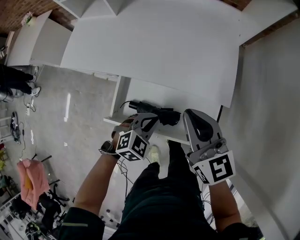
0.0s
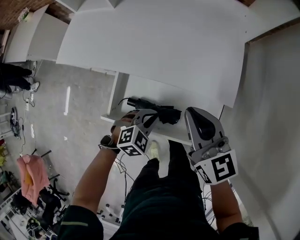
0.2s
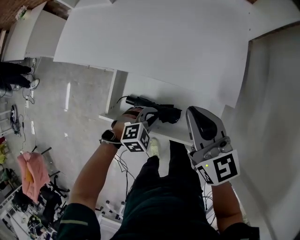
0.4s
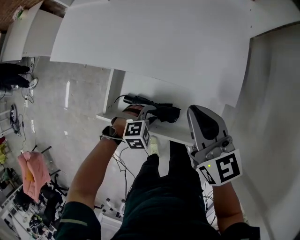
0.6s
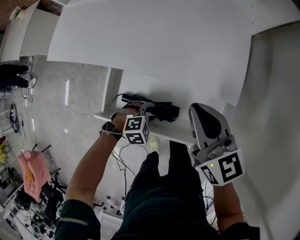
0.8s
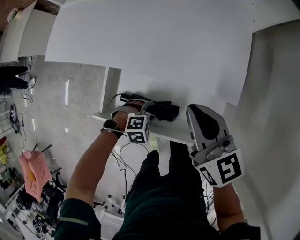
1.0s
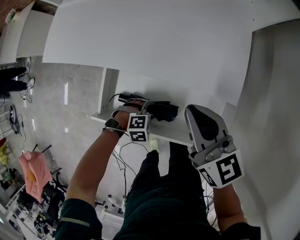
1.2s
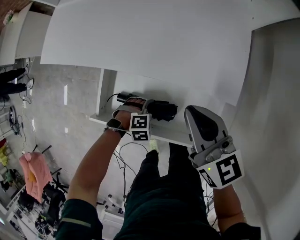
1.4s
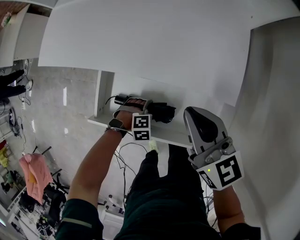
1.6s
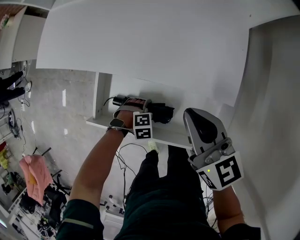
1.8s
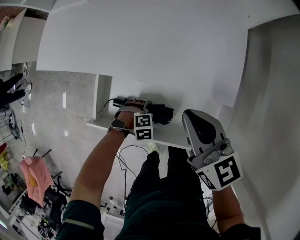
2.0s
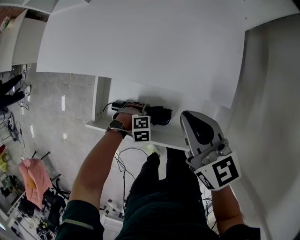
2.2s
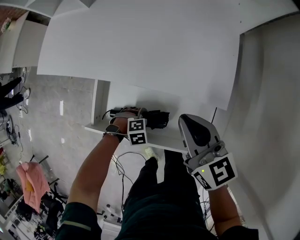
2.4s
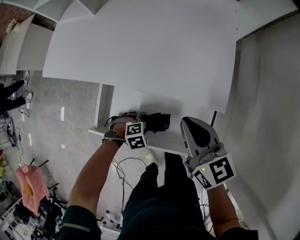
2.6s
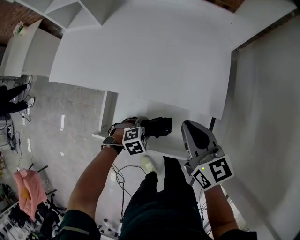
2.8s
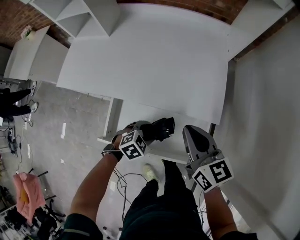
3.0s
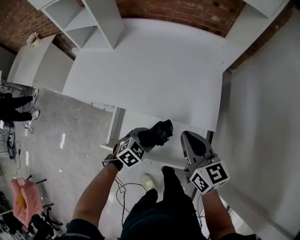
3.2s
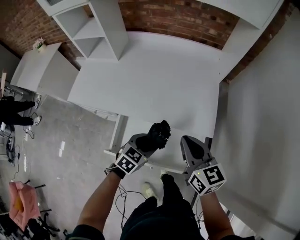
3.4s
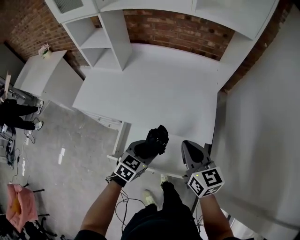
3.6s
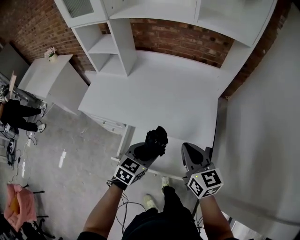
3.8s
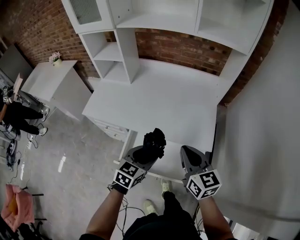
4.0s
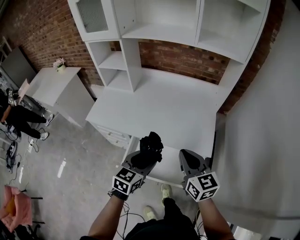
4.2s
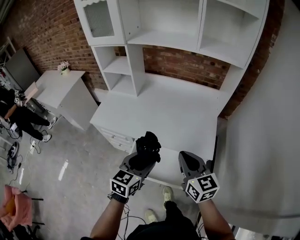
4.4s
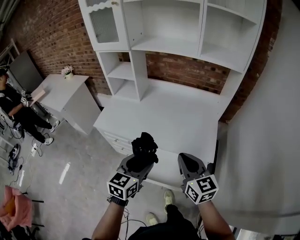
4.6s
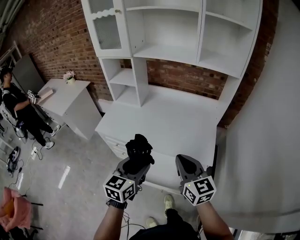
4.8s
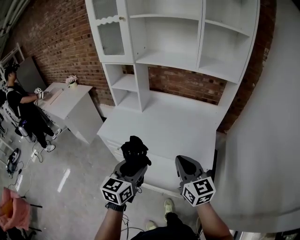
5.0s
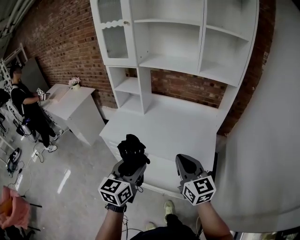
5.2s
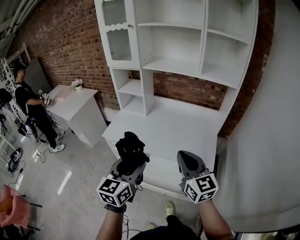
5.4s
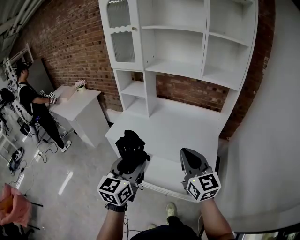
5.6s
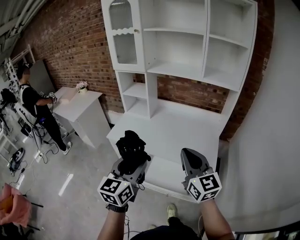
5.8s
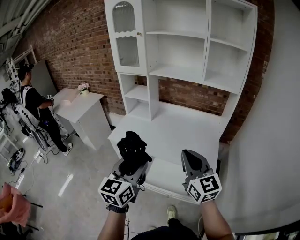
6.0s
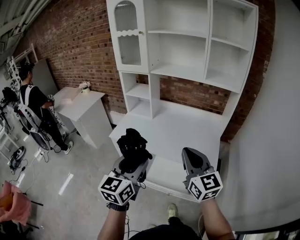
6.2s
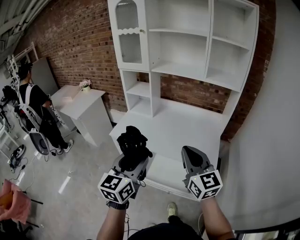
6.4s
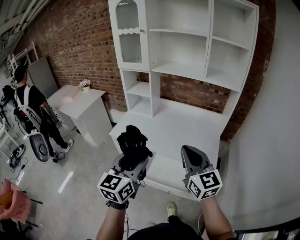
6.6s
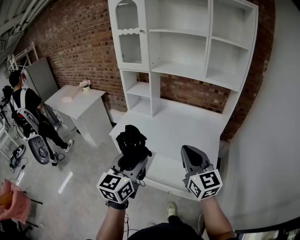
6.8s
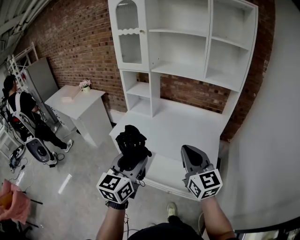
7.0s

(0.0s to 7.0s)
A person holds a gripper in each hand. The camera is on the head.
0.0s - 1.4s: The right gripper heads downward, covering roughly 10 cm, while the left gripper moves downward, roughly 20 cm, turns by about 40 degrees, and opens.
1.4s - 2.8s: The left gripper moves upward, some 5 cm.
2.8s - 4.2s: The left gripper heads upward, covering roughly 30 cm, and tilts its fingers about 40 degrees upward; the right gripper travels upward and backward by some 15 cm.
4.2s - 5.6s: The two grippers go some 20 cm upward, to the left and backward. The left gripper swivels roughly 30 degrees.
5.6s - 7.0s: The grippers move only a little.

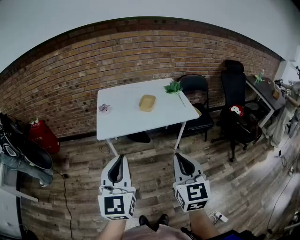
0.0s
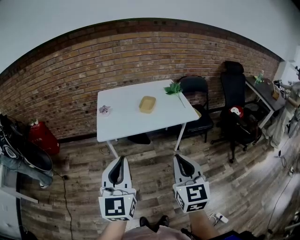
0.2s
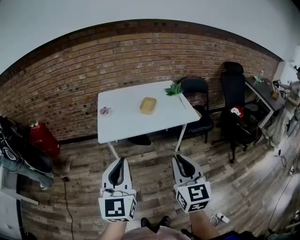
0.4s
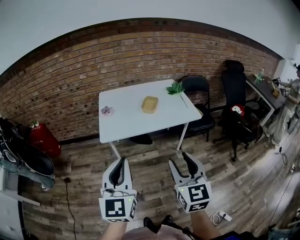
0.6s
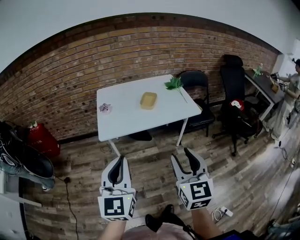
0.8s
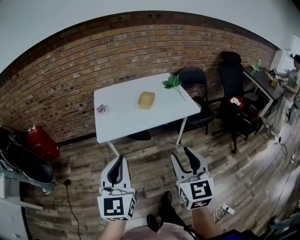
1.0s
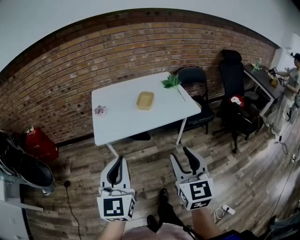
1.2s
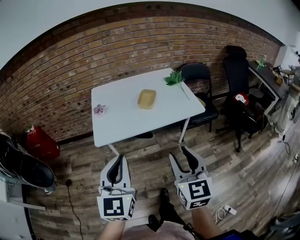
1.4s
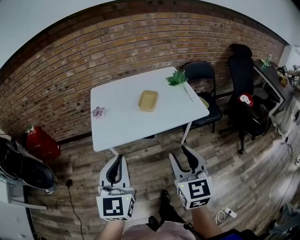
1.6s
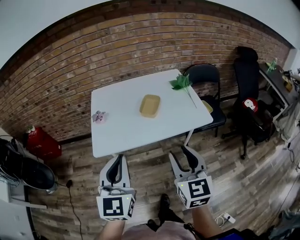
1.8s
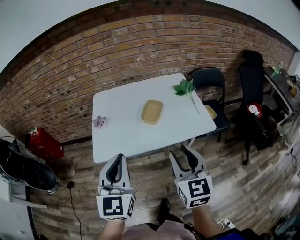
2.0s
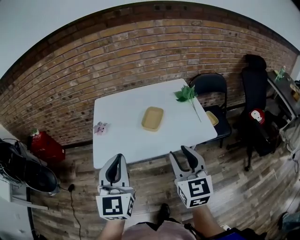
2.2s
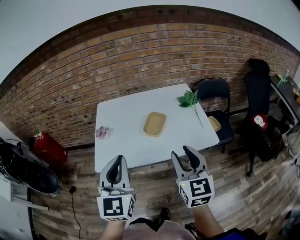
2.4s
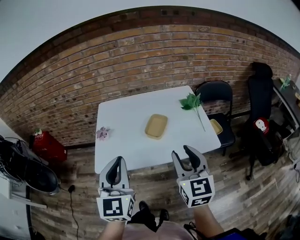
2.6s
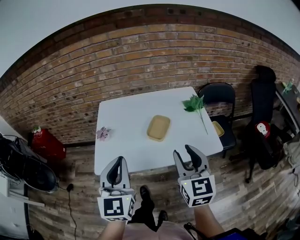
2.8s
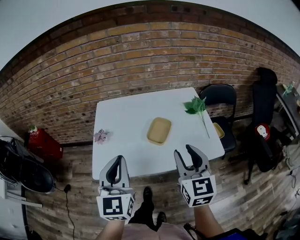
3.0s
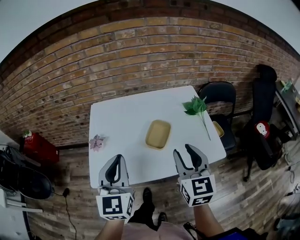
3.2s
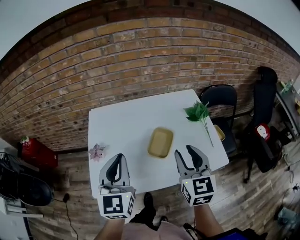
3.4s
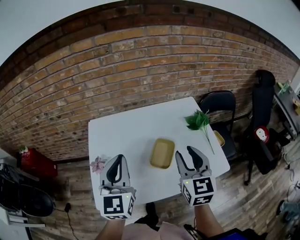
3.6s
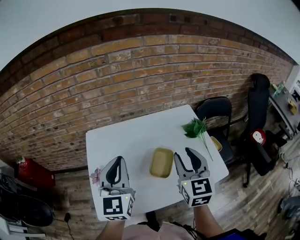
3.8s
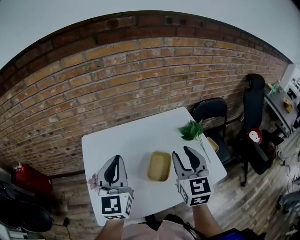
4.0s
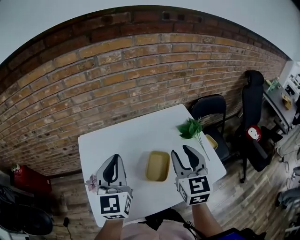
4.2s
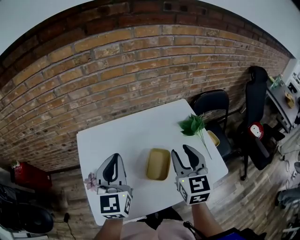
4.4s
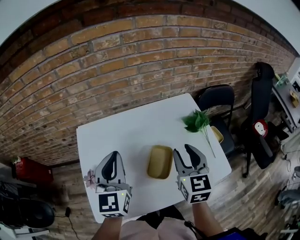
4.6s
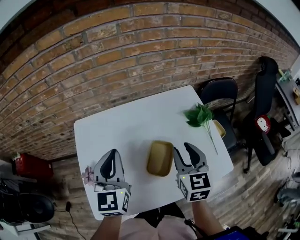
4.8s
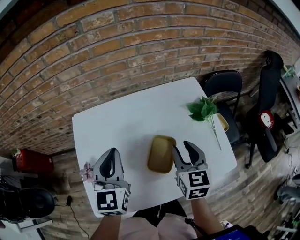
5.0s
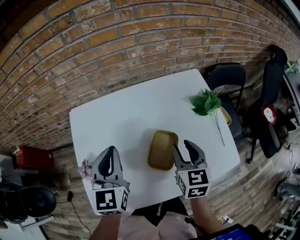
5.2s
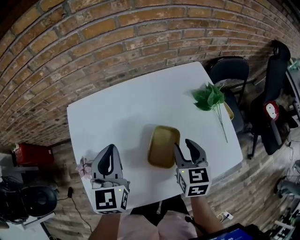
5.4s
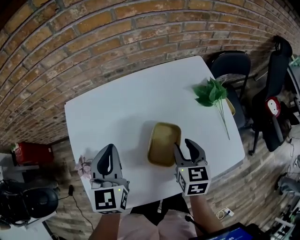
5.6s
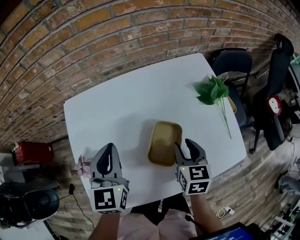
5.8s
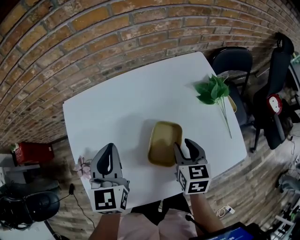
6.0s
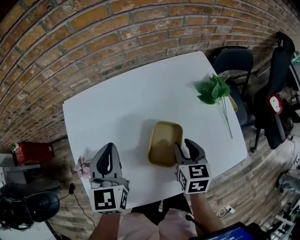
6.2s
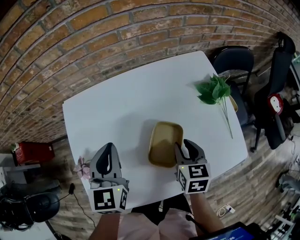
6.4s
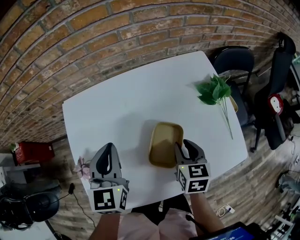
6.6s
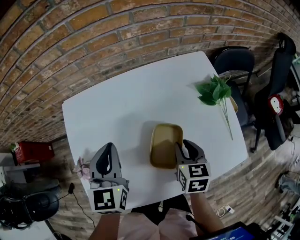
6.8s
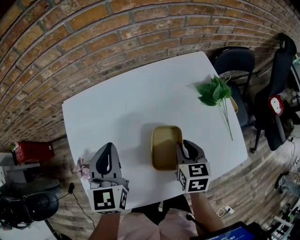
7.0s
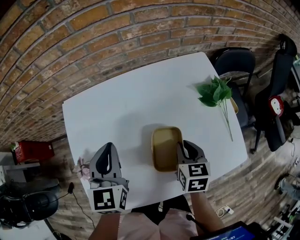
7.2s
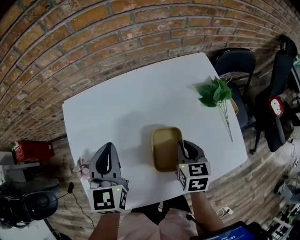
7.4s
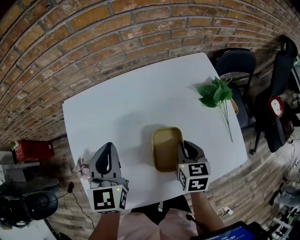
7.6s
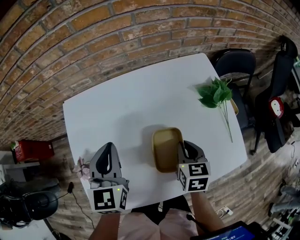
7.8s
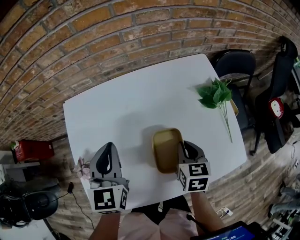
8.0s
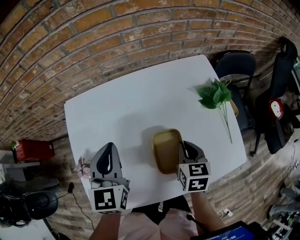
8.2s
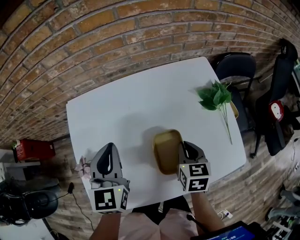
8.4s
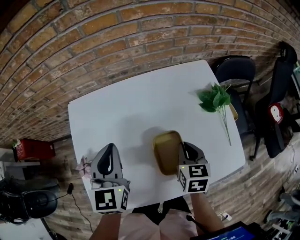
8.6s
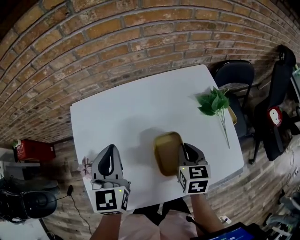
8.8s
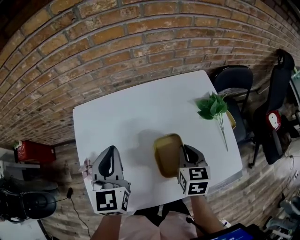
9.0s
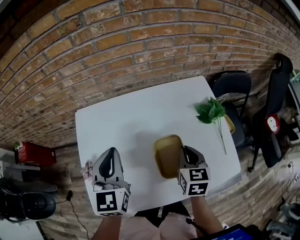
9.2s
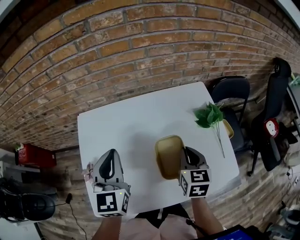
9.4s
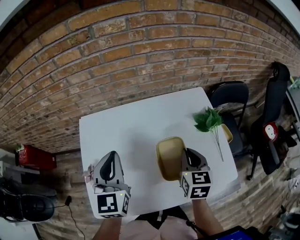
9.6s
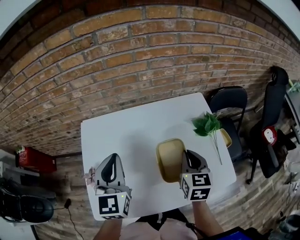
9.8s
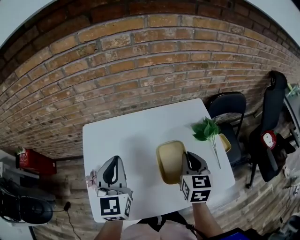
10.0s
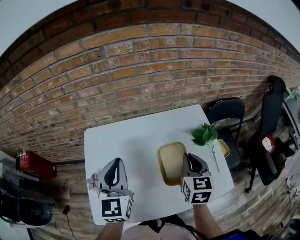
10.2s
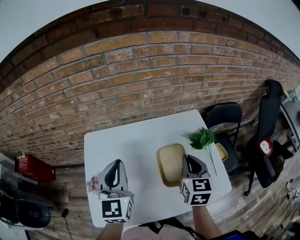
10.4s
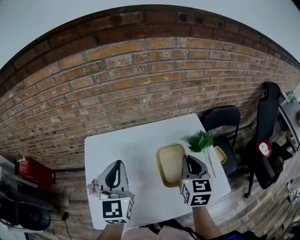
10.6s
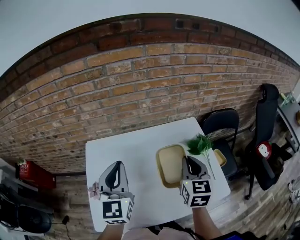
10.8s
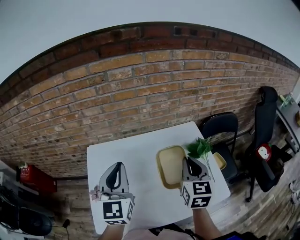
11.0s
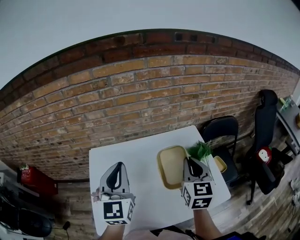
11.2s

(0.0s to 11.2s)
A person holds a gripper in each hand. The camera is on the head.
0.0s - 1.6s: The grippers both shift forward by some 15 cm. The right gripper opens.
1.6s - 3.2s: The two grippers go about 25 cm forward.
3.2s - 4.8s: Both grippers move forward, about 20 cm.
4.8s - 6.4s: The right gripper is displaced downward by approximately 15 cm, and swivels roughly 20 degrees; the left gripper heads downward, covering roughly 10 cm.
6.4s - 8.0s: The right gripper closes up.
8.0s - 9.6s: Both grippers travel together upward, roughly 10 cm.
9.6s - 11.2s: Both grippers travel together upward, roughly 15 cm.

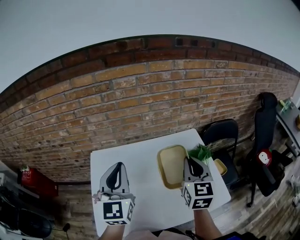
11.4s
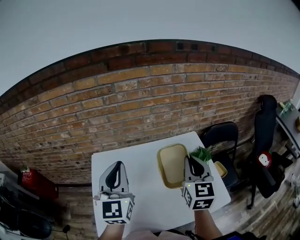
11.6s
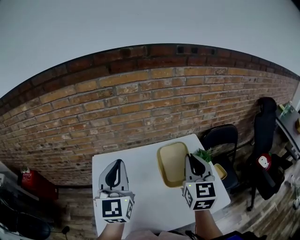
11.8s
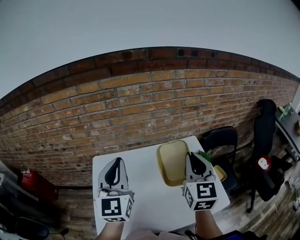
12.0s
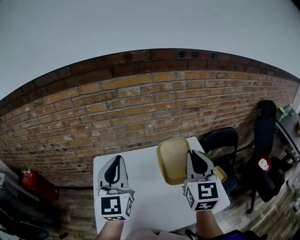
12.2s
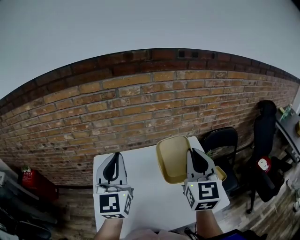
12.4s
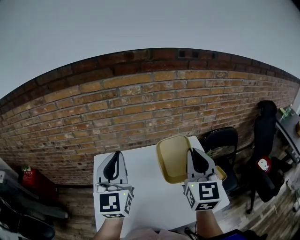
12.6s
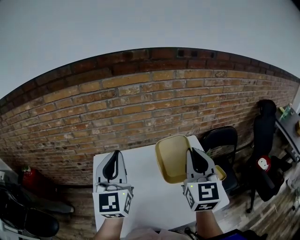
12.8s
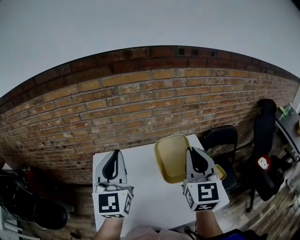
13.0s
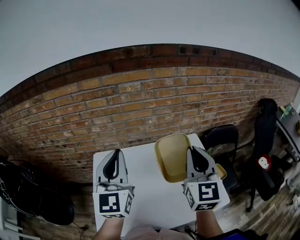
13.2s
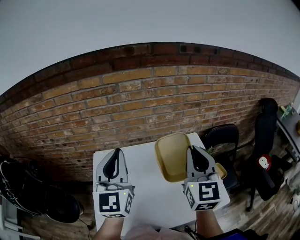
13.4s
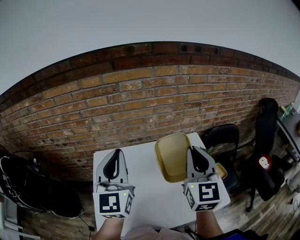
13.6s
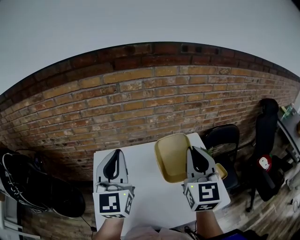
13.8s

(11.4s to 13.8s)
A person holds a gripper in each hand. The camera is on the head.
11.4s - 12.6s: The two grippers go some 10 cm upward.
12.6s - 13.8s: Neither gripper changes place.

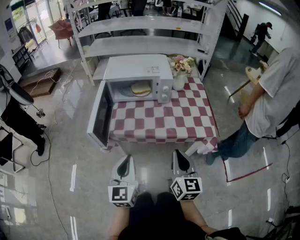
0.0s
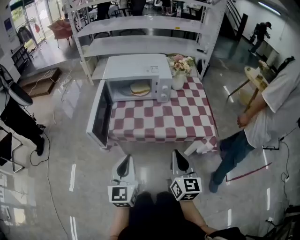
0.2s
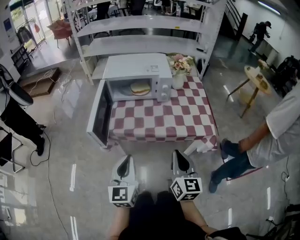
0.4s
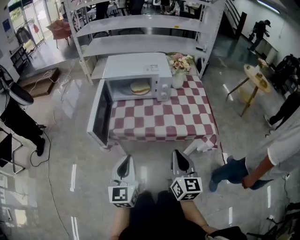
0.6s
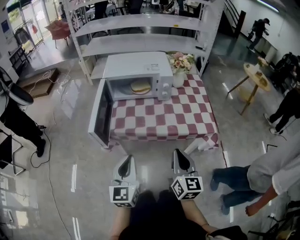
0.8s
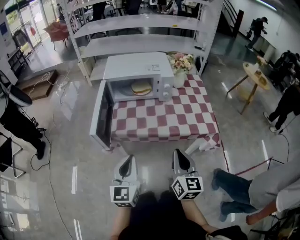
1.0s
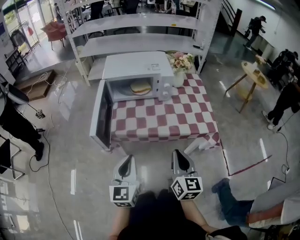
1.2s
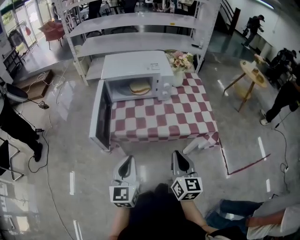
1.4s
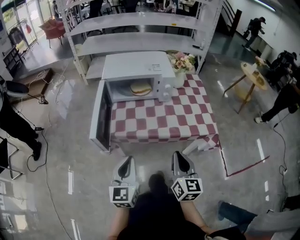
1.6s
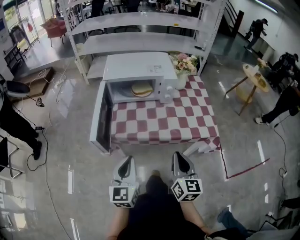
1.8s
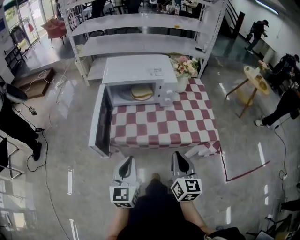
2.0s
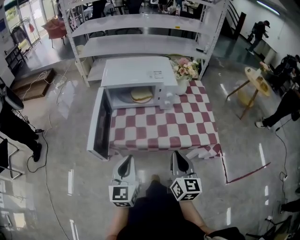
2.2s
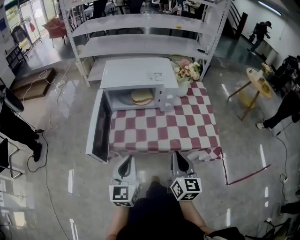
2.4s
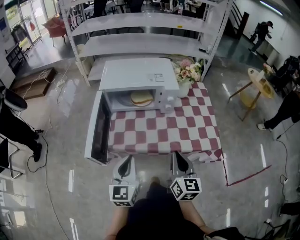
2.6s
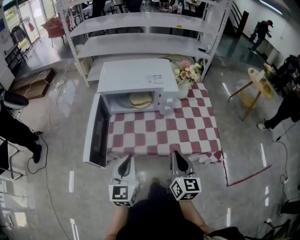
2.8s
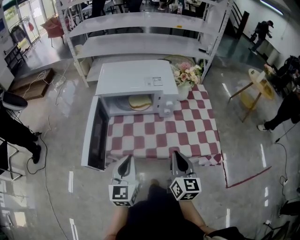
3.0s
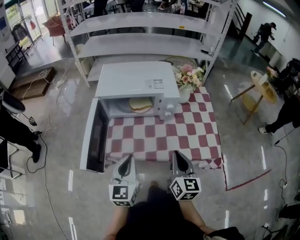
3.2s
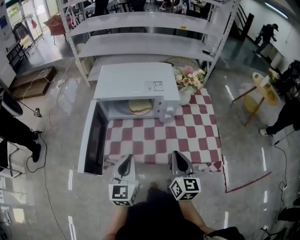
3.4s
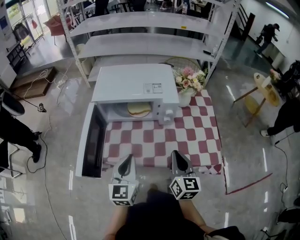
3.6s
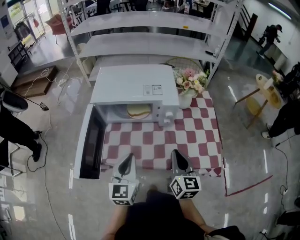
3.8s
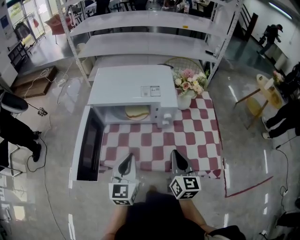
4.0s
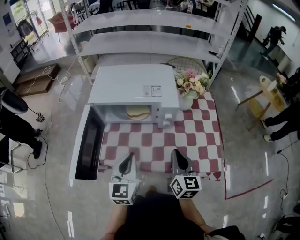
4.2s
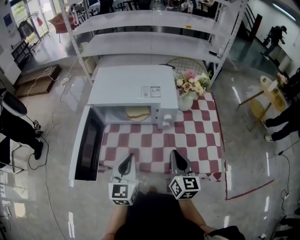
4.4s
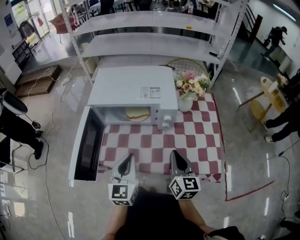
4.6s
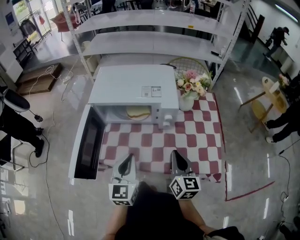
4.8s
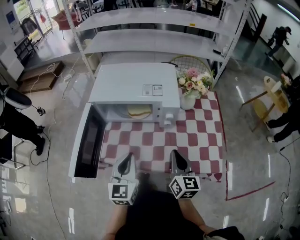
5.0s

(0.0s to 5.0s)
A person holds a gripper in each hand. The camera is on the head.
0.0s - 1.6s: The left gripper ends up some 5 cm from where it was.
1.6s - 3.4s: The two grippers go some 20 cm forward.
3.4s - 5.0s: The two grippers go some 5 cm forward.
